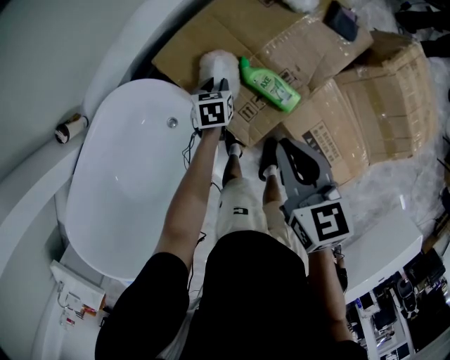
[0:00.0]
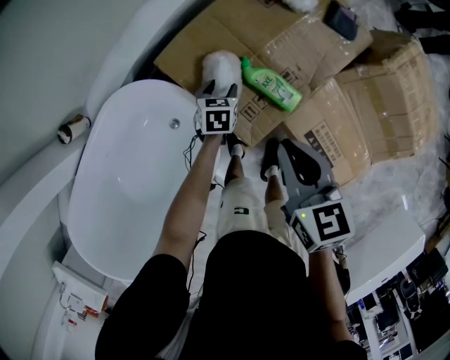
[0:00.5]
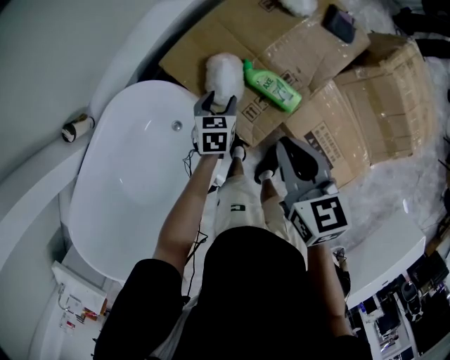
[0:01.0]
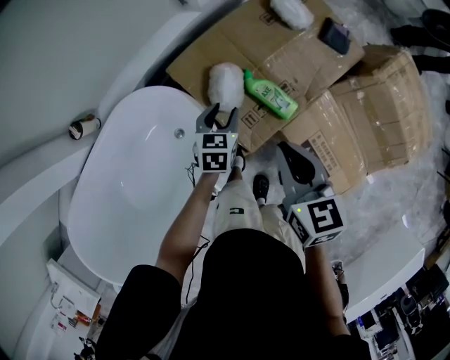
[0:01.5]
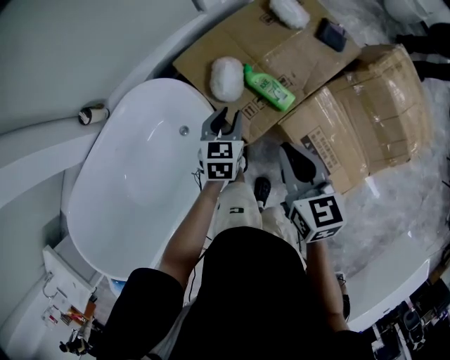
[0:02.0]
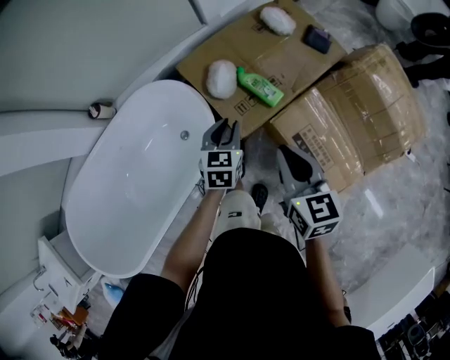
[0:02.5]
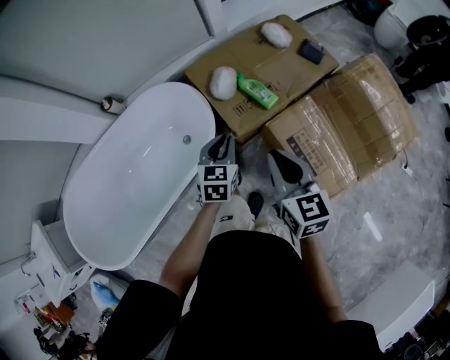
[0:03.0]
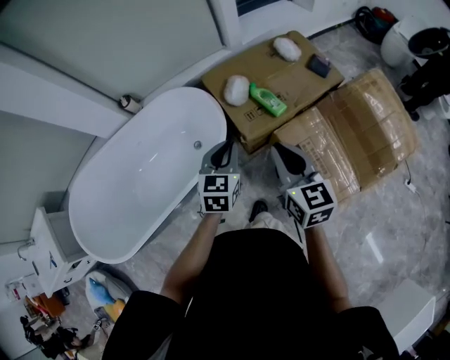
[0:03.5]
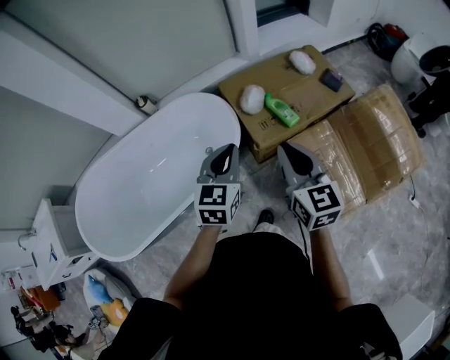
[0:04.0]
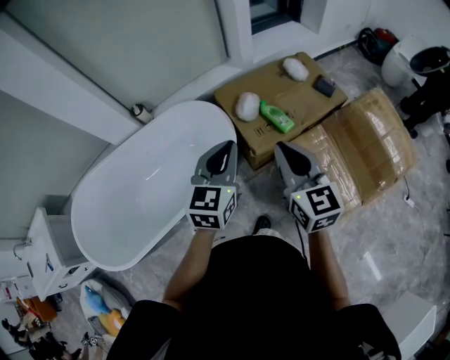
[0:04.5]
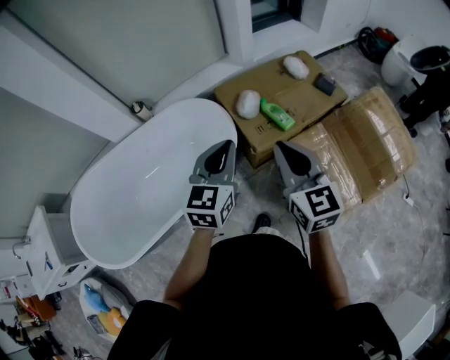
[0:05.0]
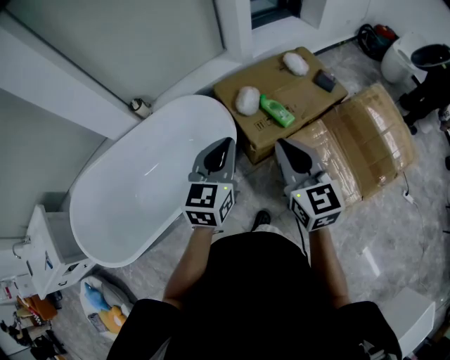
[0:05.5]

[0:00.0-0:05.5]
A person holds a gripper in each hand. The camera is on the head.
0:00.0 to 0:02.0: The left gripper moves upward and backward, about 25 cm, changes its angle by roughly 20 degrees, and opens and closes again, while the right gripper shifts some 10 cm backward.
0:02.0 to 0:03.5: The two grippers go some 25 cm backward and upward. The left gripper closes, while the right gripper changes its angle by approximately 20 degrees.
0:03.5 to 0:05.5: Both grippers travel together upward and to the left, roughly 10 cm.

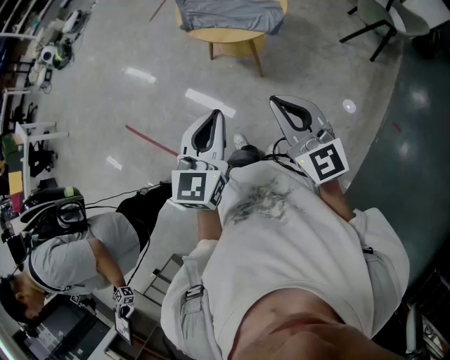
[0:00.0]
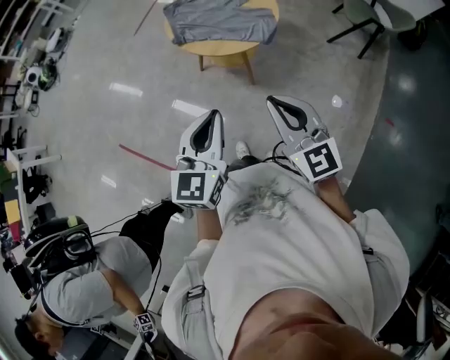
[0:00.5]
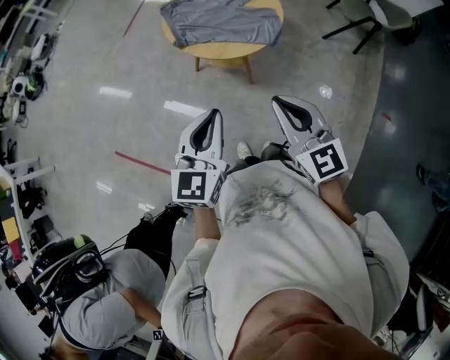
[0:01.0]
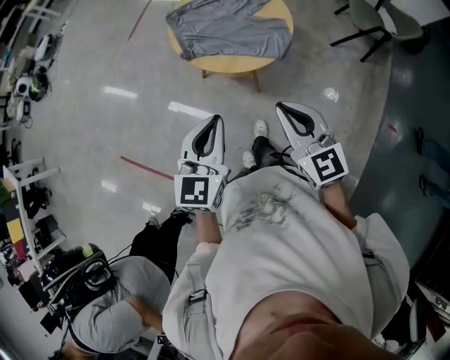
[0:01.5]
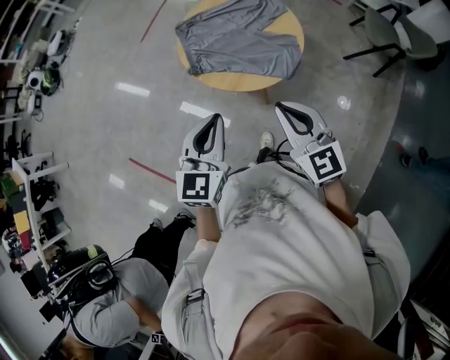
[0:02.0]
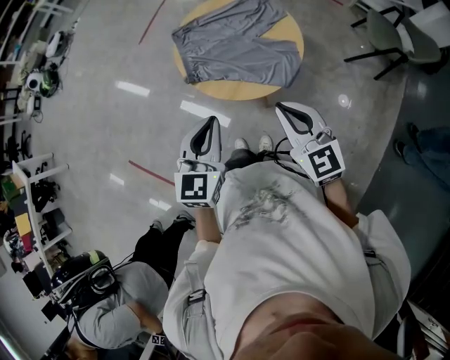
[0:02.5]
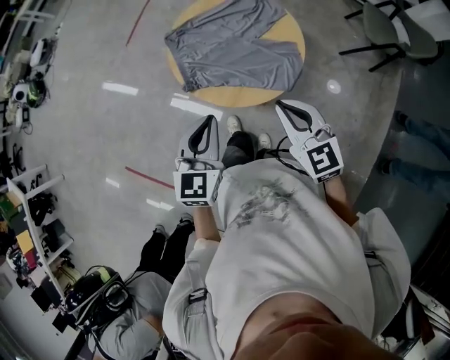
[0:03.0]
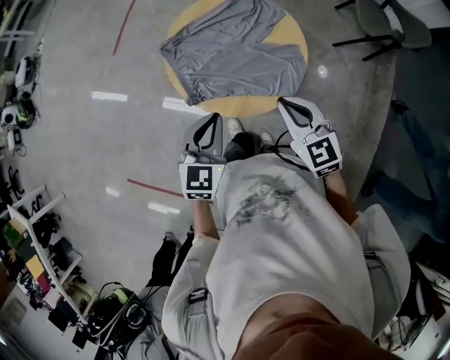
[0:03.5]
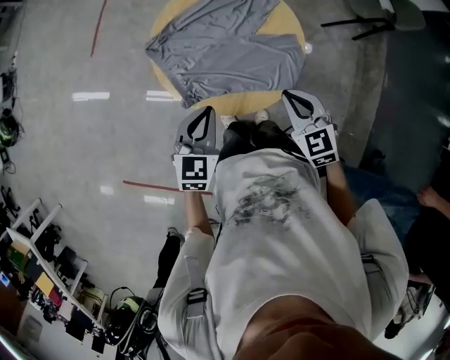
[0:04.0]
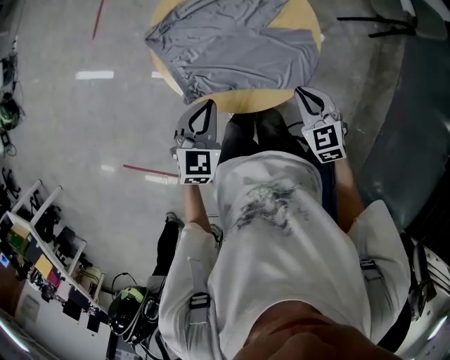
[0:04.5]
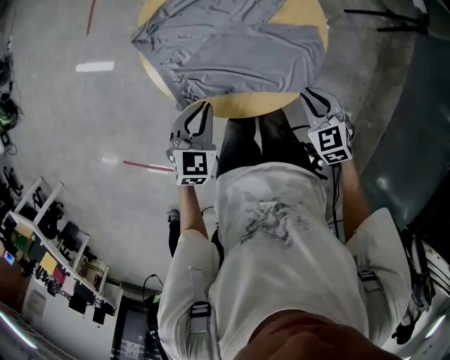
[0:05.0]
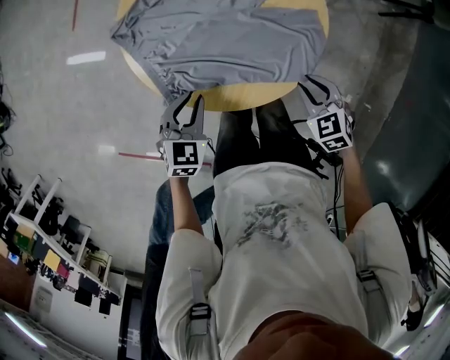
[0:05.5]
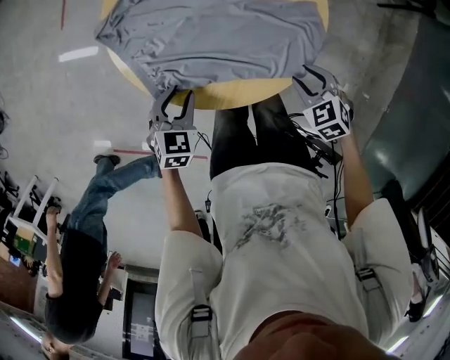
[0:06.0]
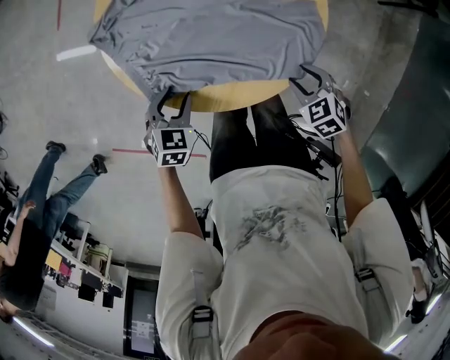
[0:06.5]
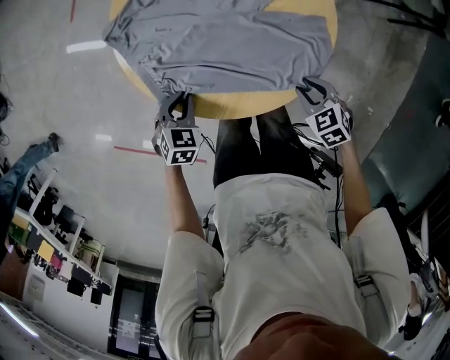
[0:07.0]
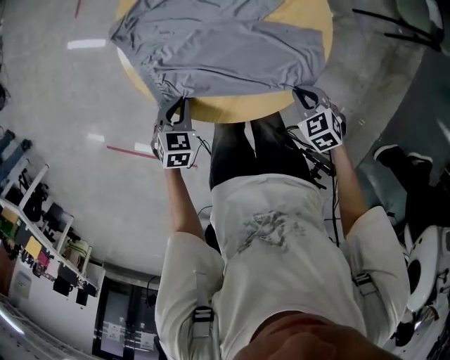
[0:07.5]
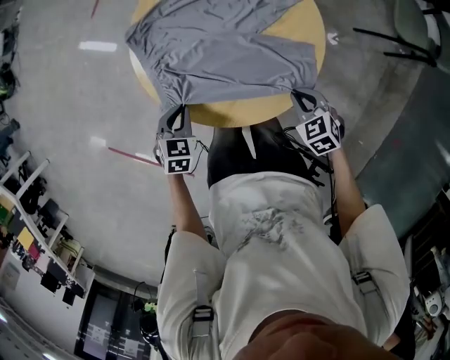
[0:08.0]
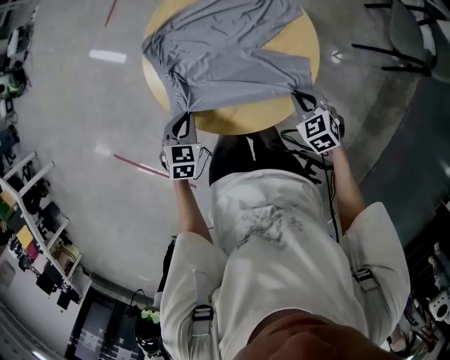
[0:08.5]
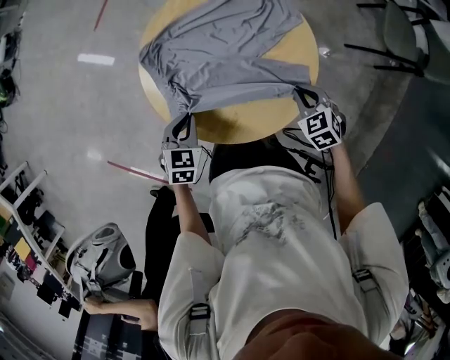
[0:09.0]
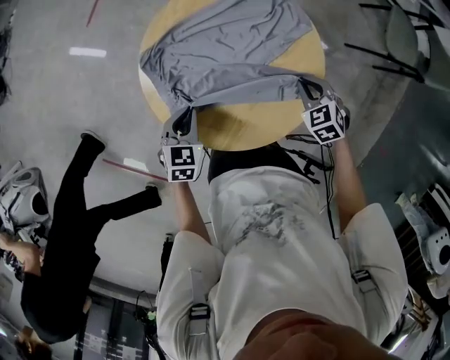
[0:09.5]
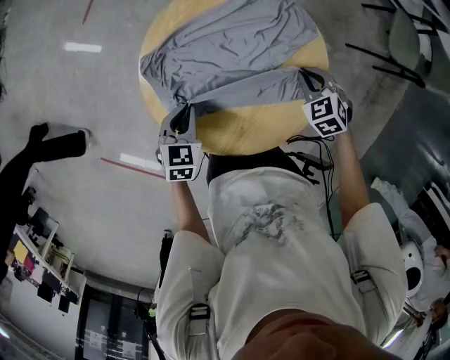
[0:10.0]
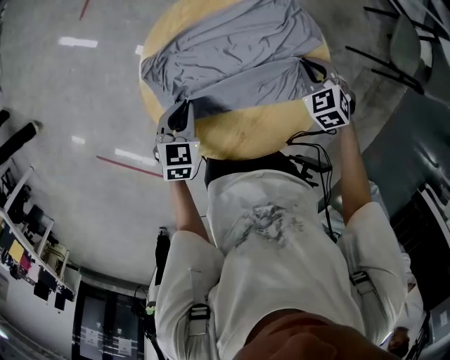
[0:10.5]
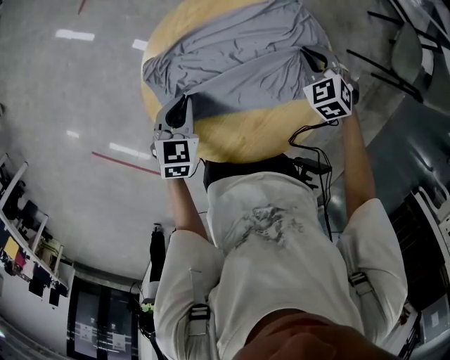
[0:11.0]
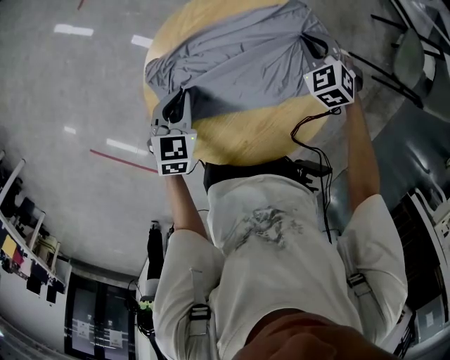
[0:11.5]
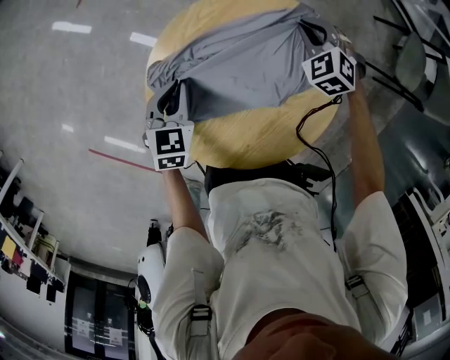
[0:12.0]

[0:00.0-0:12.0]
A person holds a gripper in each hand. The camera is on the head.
0:00.0 to 0:02.0: Both grippers move forward, about 30 cm.
0:02.0 to 0:04.0: The grippers both shift forward and downward by approximately 30 cm. The right gripper changes its angle by some 30 degrees; the left gripper turns by some 20 degrees.
0:04.0 to 0:06.0: The left gripper moves downward, roughly 25 cm, swivels roughly 20 degrees, and opens up. The right gripper travels downward and to the right by approximately 25 cm, changes its angle by some 30 degrees, and opens.
0:06.0 to 0:08.0: The left gripper closes up, while the right gripper shifts by about 5 cm, and closes.
0:08.0 to 0:10.0: Both grippers travel together forward, approximately 15 cm.
0:10.0 to 0:12.0: The left gripper travels forward and to the left by approximately 15 cm. The right gripper moves forward and to the left, approximately 25 cm, and swivels some 20 degrees.

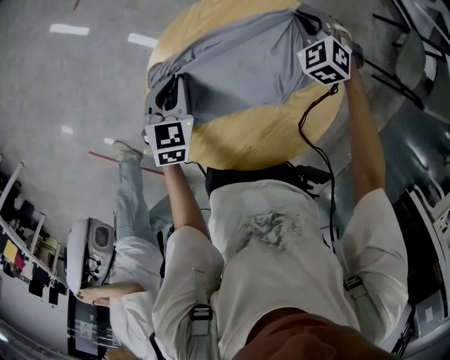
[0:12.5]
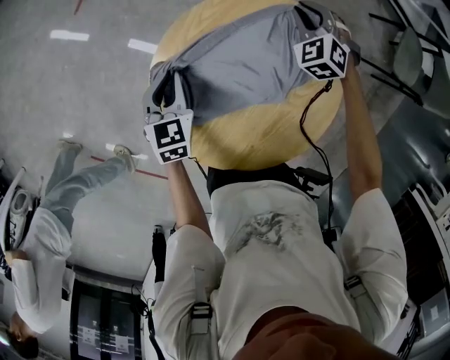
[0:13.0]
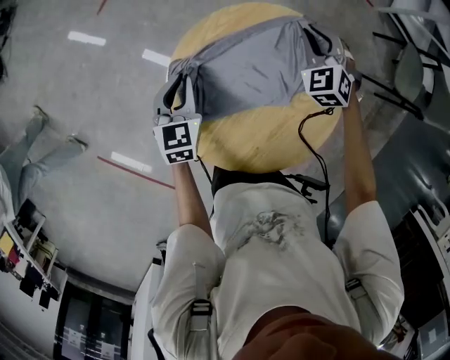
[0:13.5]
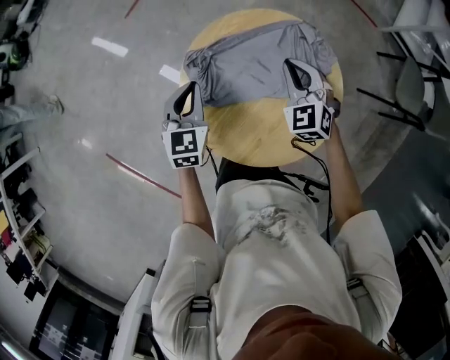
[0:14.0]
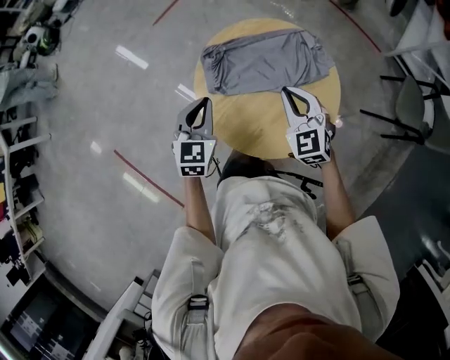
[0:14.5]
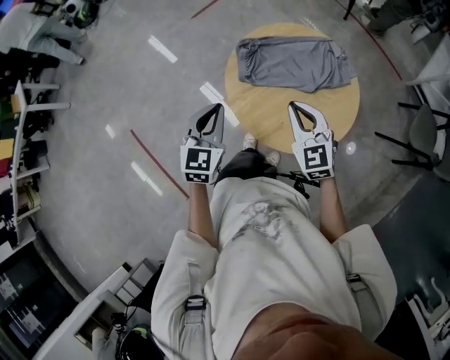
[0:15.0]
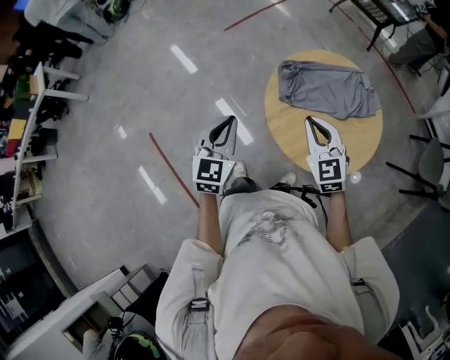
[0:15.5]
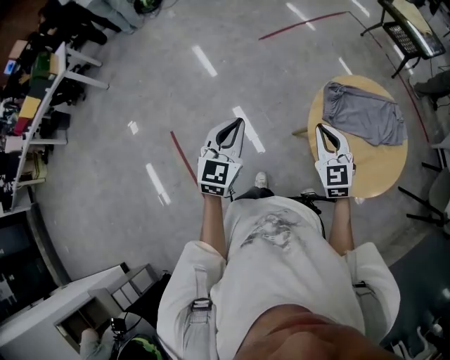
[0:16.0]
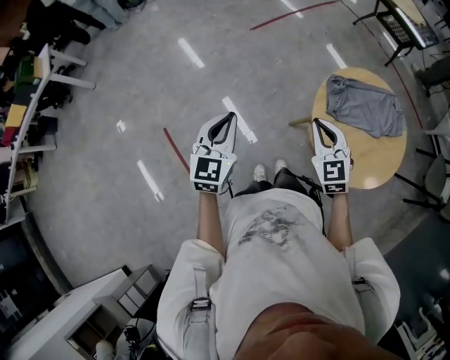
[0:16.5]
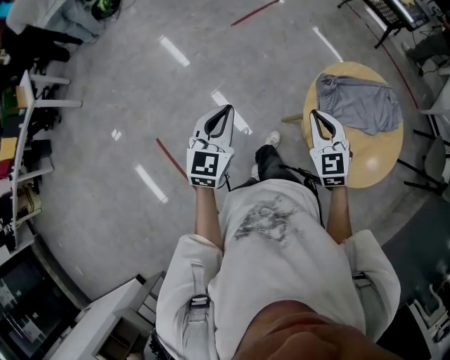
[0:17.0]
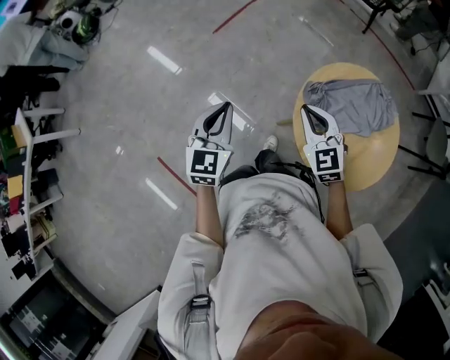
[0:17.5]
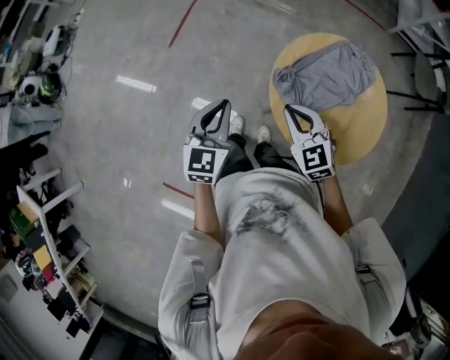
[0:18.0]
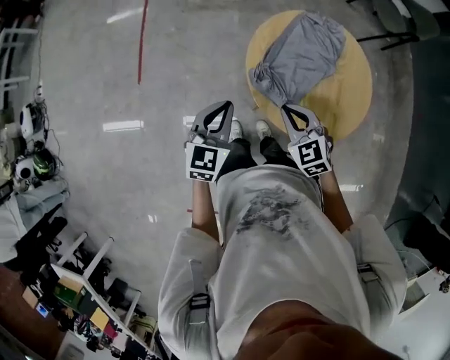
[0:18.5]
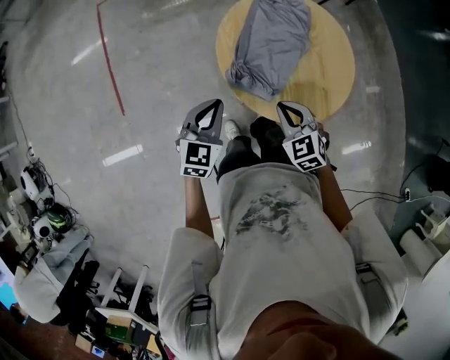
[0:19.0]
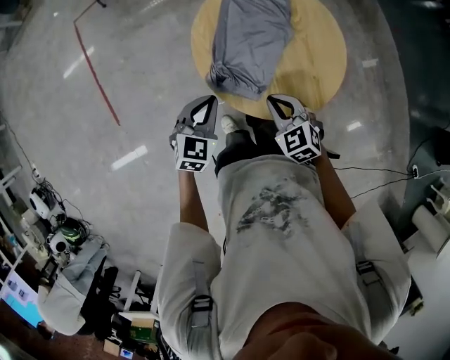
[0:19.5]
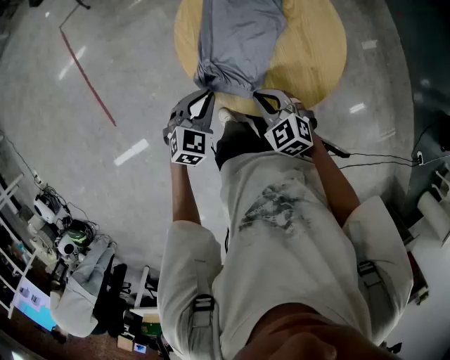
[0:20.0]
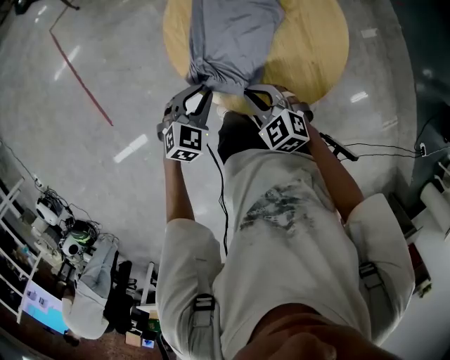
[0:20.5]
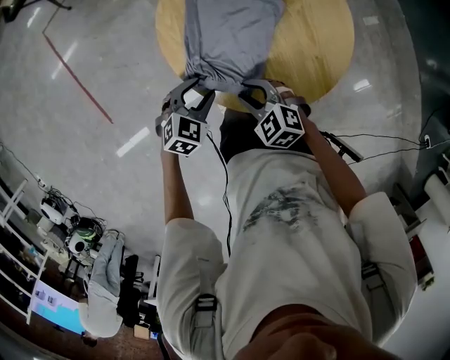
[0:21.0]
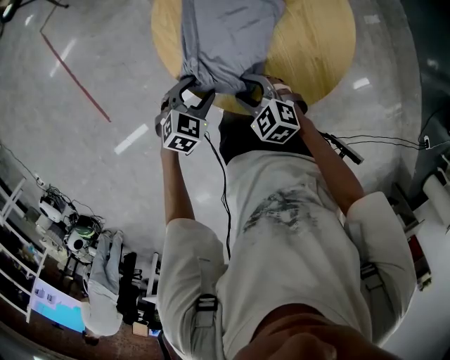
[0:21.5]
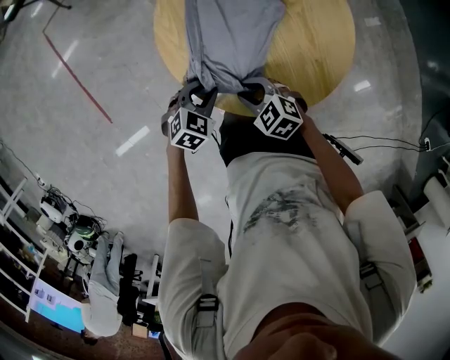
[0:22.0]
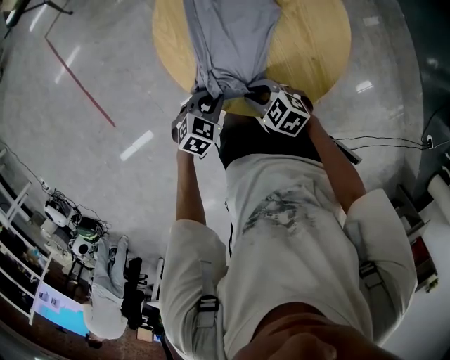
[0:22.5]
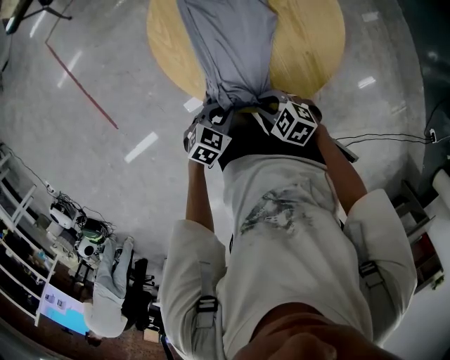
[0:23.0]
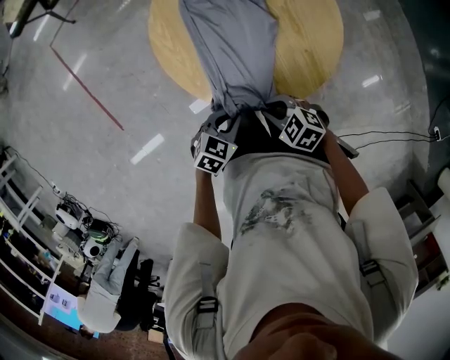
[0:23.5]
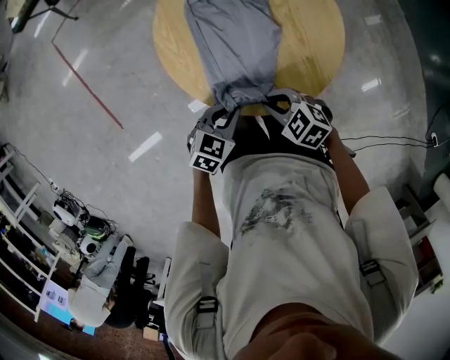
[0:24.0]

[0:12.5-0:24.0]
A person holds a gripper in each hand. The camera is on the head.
0:12.5 to 0:14.5: Both grippers move backward and upward, approximately 35 cm. The right gripper changes its angle by roughly 40 degrees. Meanwhile the left gripper swivels approximately 20 degrees.
0:14.5 to 0:16.5: Both grippers travel together to the left, some 40 cm.
0:16.5 to 0:18.5: The left gripper moves about 40 cm, and changes its angle by some 60 degrees, while the right gripper moves approximately 25 cm, and swivels roughly 40 degrees.
0:18.5 to 0:20.0: The left gripper goes roughly 20 cm downward, to the right and forward, and turns by some 40 degrees, while the right gripper moves downward and to the right, some 15 cm.
0:20.0 to 0:22.0: Both grippers travel together downward, roughly 10 cm. The left gripper opens and closes again; the right gripper opens.
0:22.0 to 0:24.0: The left gripper ends up roughly 10 cm from where it was, while the right gripper moves about 10 cm.
